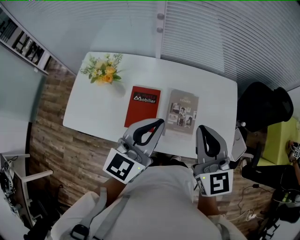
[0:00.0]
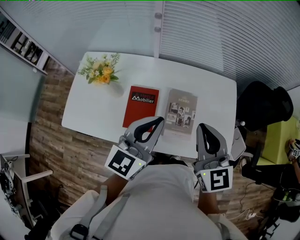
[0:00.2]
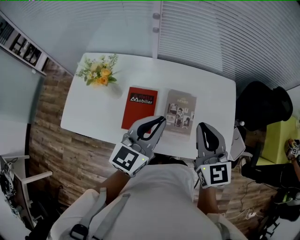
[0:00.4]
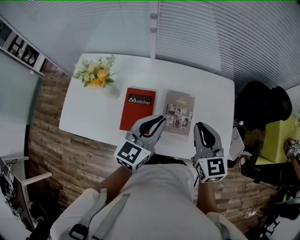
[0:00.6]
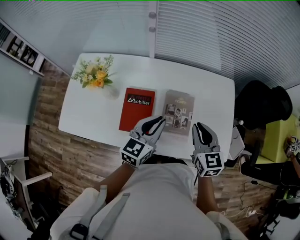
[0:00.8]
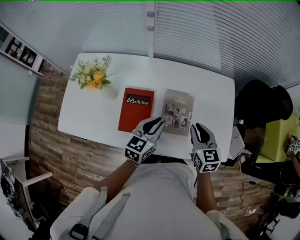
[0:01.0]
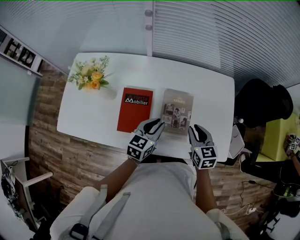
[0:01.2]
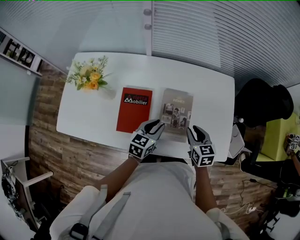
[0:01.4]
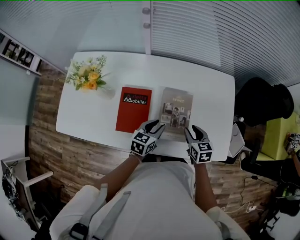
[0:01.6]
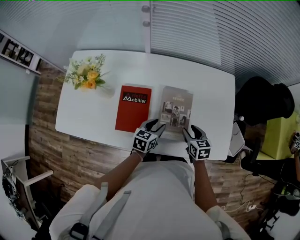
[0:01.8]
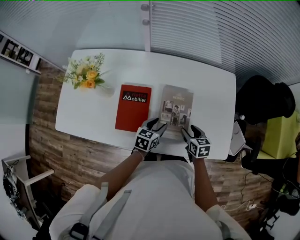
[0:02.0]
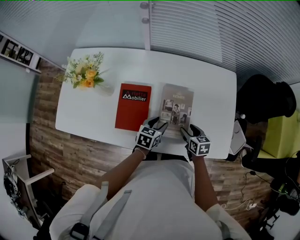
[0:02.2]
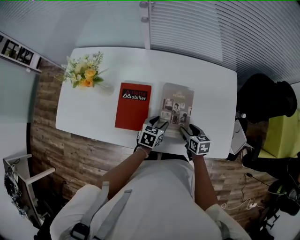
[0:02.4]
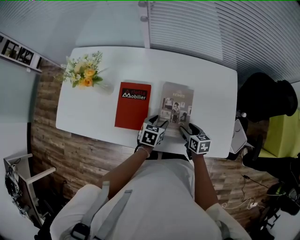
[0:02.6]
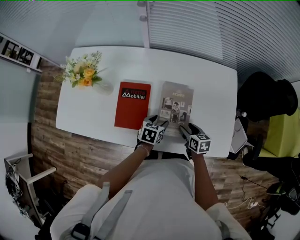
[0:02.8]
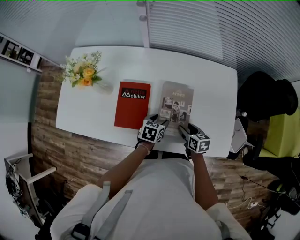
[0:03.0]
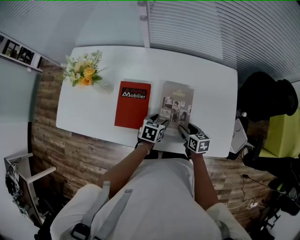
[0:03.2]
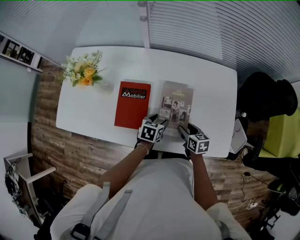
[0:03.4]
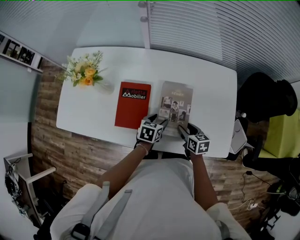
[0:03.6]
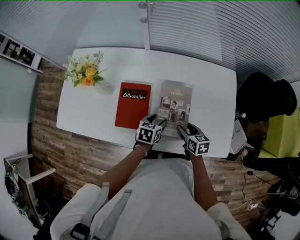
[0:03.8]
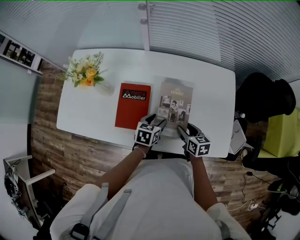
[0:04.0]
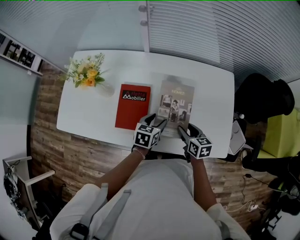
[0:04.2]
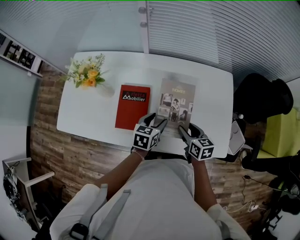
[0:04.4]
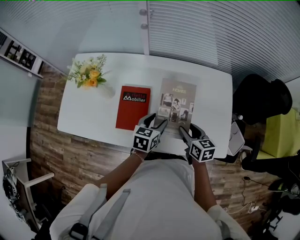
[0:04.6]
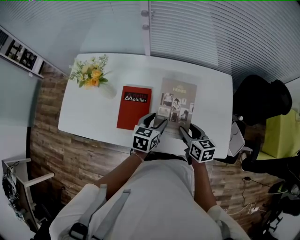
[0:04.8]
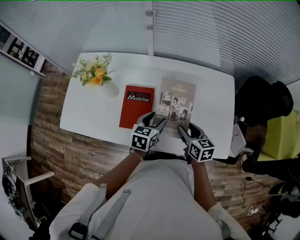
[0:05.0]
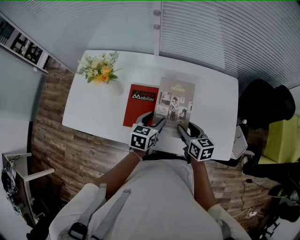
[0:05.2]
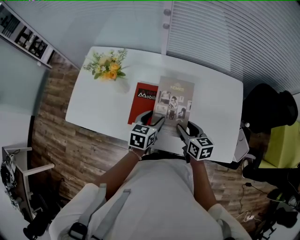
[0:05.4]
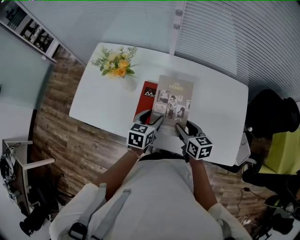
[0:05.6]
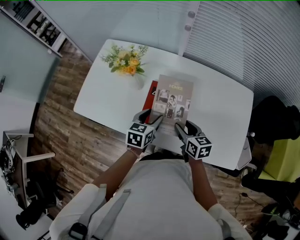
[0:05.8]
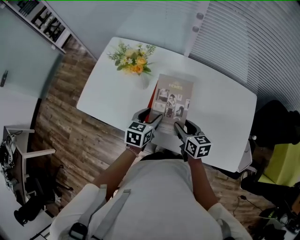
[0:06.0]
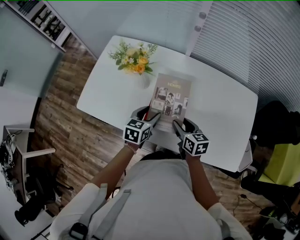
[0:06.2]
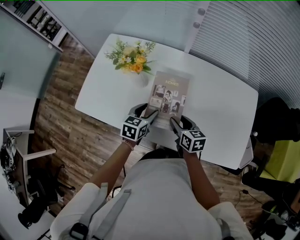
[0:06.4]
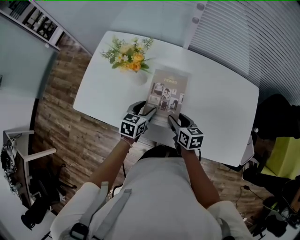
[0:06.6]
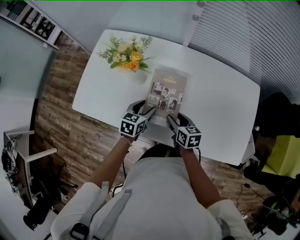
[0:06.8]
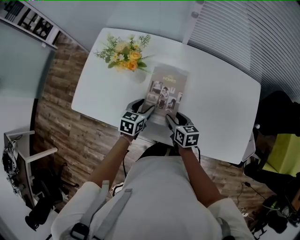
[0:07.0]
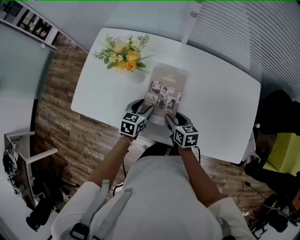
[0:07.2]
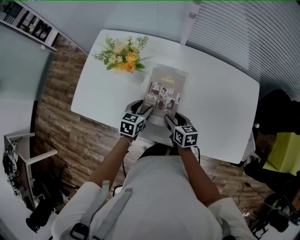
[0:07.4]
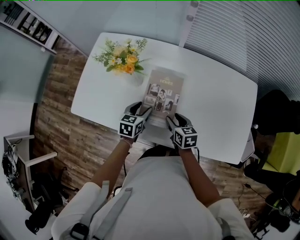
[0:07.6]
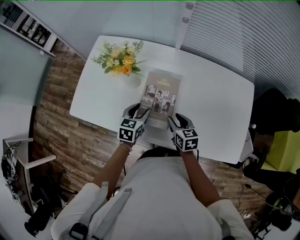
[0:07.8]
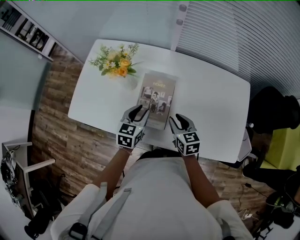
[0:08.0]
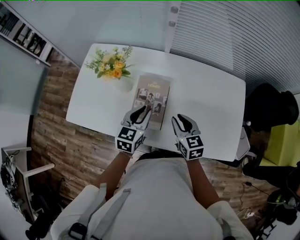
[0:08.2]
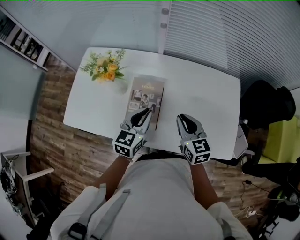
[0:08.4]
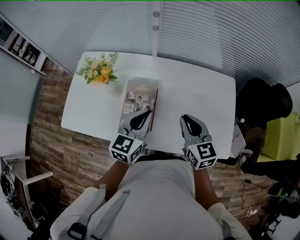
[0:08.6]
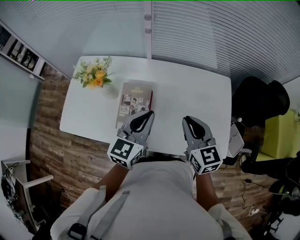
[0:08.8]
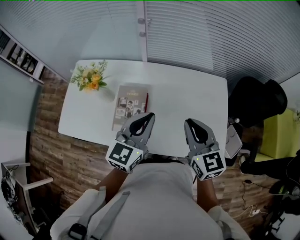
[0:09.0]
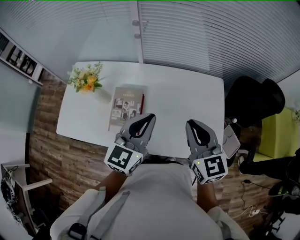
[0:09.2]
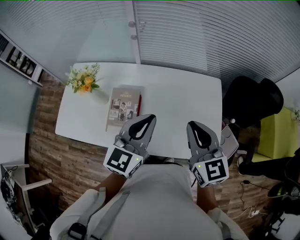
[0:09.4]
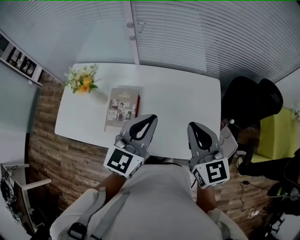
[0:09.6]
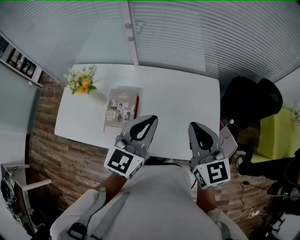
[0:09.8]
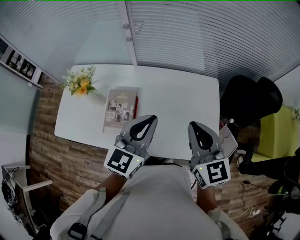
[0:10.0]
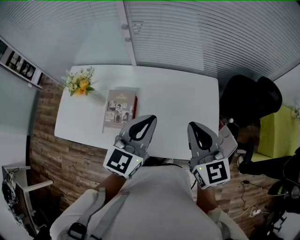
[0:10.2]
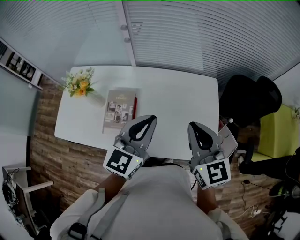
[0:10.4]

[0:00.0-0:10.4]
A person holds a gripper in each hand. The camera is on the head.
0:00.0 to 0:01.4: The two grippers go about 25 cm downward. The right gripper changes its angle by roughly 30 degrees, and opens up. Meanwhile the left gripper changes its angle by approximately 30 degrees, and opens its fingers.
0:01.4 to 0:03.0: Both grippers move downward, roughly 10 cm. The left gripper turns by some 20 degrees, and opens; the right gripper rotates approximately 20 degrees, and opens its fingers.
0:03.0 to 0:04.4: The two grippers go some 10 cm upward.
0:04.4 to 0:06.0: The grippers both shift to the left by approximately 20 cm.
0:06.0 to 0:07.4: Both grippers move downward, roughly 10 cm.
0:07.4 to 0:09.0: Both grippers move upward and to the right, roughly 35 cm. The right gripper turns by roughly 40 degrees, and closes up, while the left gripper tilts its fingers approximately 30 degrees upward, and closes.
0:09.0 to 0:10.4: The grippers both shift to the right and upward by approximately 10 cm.

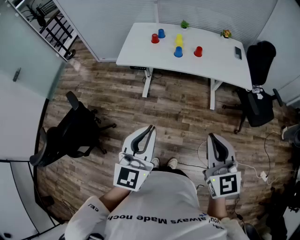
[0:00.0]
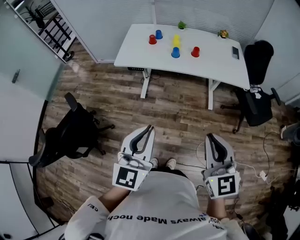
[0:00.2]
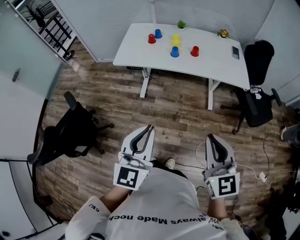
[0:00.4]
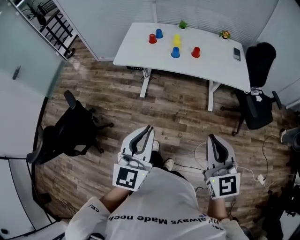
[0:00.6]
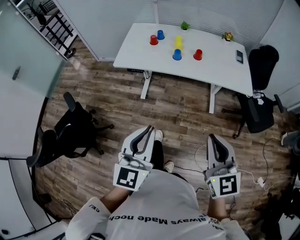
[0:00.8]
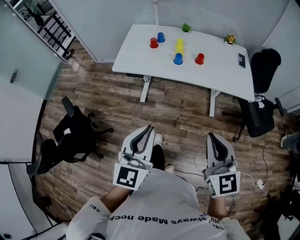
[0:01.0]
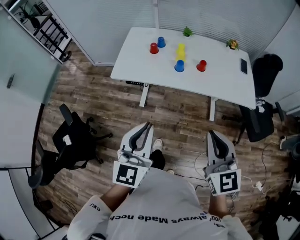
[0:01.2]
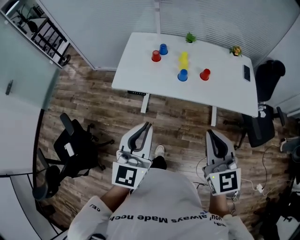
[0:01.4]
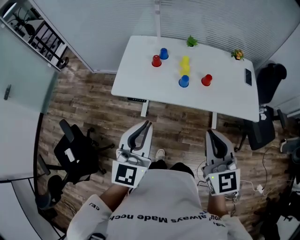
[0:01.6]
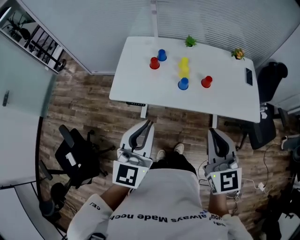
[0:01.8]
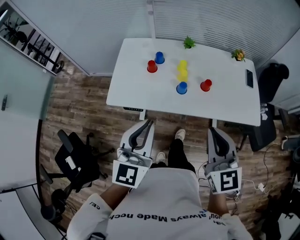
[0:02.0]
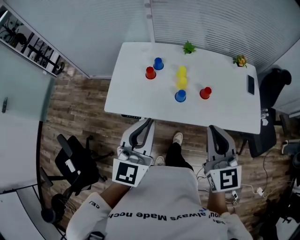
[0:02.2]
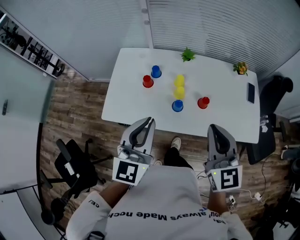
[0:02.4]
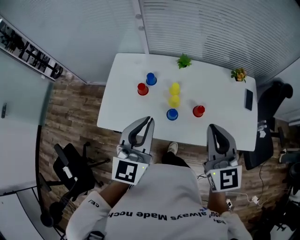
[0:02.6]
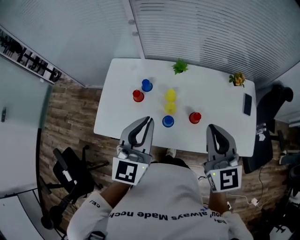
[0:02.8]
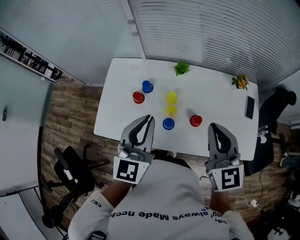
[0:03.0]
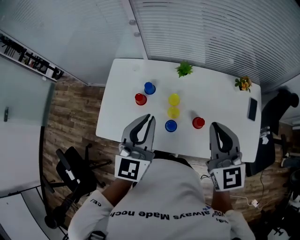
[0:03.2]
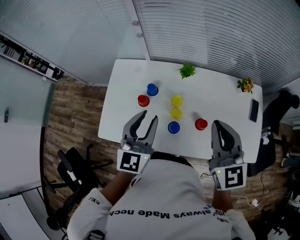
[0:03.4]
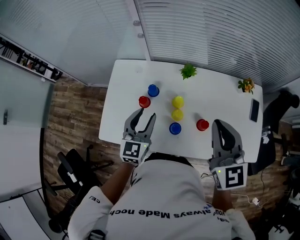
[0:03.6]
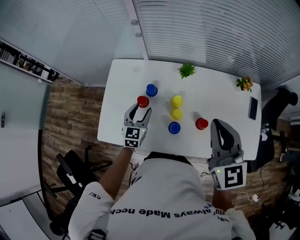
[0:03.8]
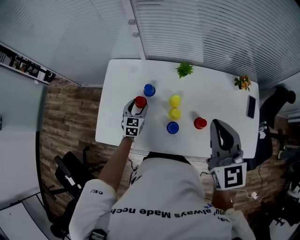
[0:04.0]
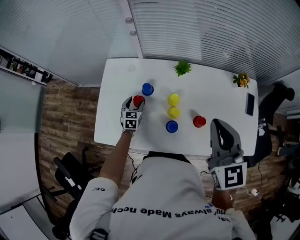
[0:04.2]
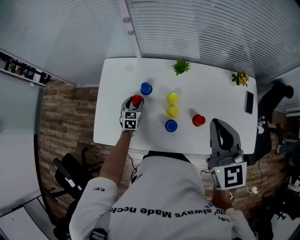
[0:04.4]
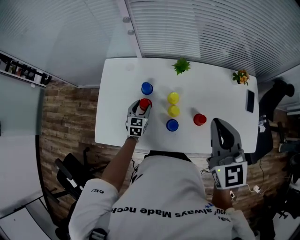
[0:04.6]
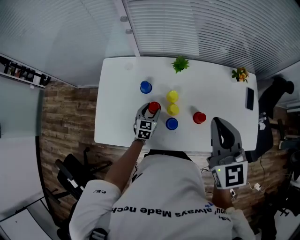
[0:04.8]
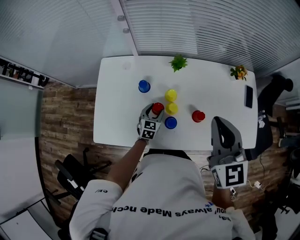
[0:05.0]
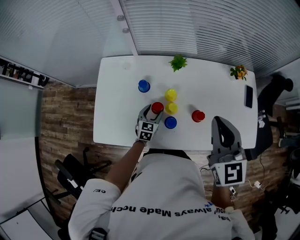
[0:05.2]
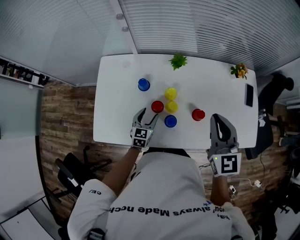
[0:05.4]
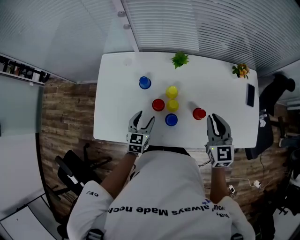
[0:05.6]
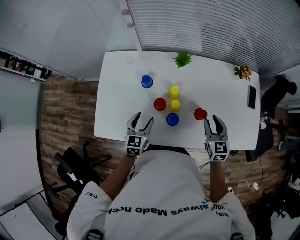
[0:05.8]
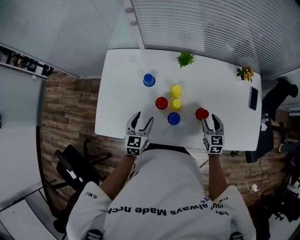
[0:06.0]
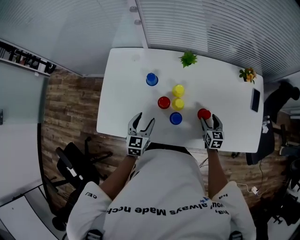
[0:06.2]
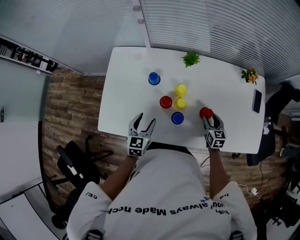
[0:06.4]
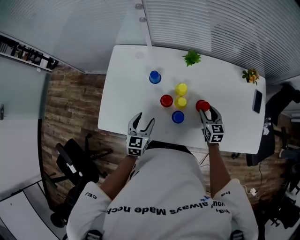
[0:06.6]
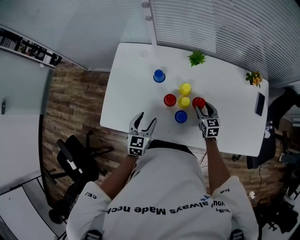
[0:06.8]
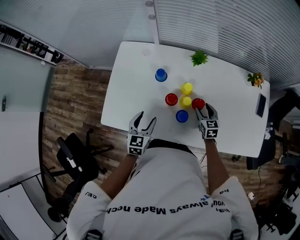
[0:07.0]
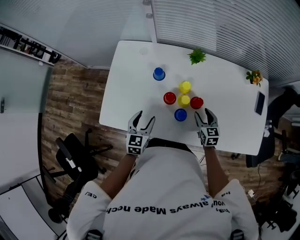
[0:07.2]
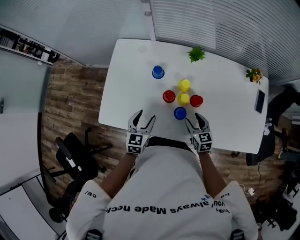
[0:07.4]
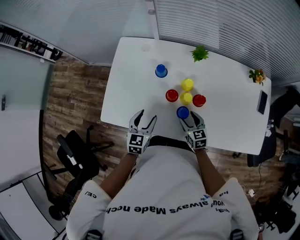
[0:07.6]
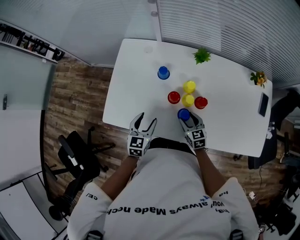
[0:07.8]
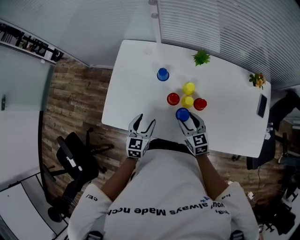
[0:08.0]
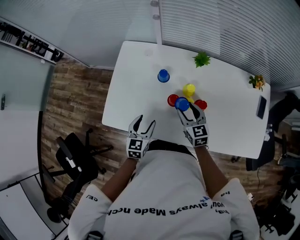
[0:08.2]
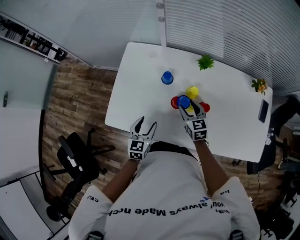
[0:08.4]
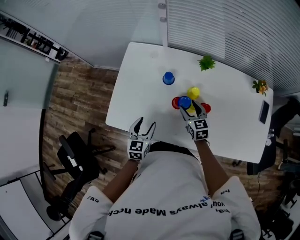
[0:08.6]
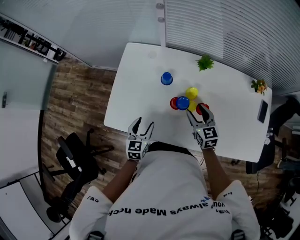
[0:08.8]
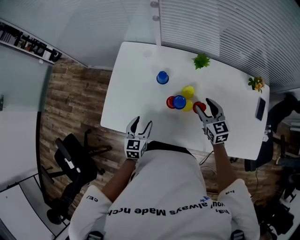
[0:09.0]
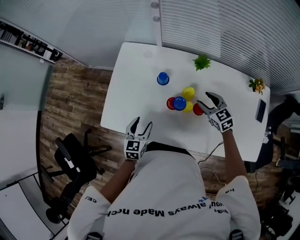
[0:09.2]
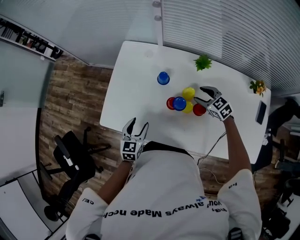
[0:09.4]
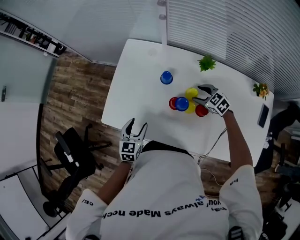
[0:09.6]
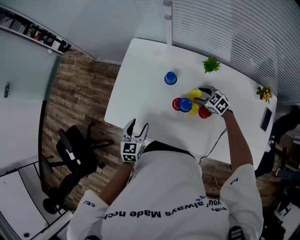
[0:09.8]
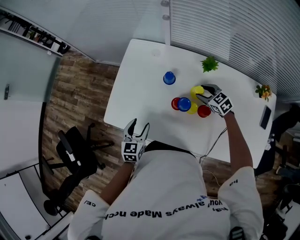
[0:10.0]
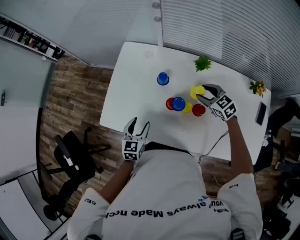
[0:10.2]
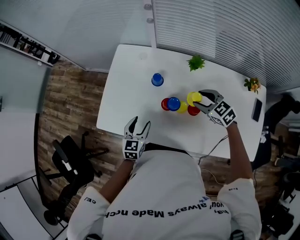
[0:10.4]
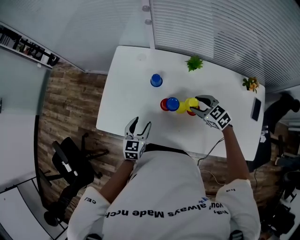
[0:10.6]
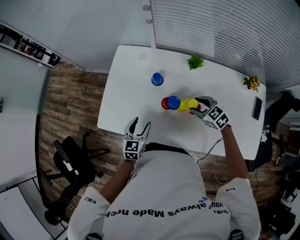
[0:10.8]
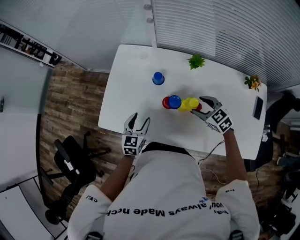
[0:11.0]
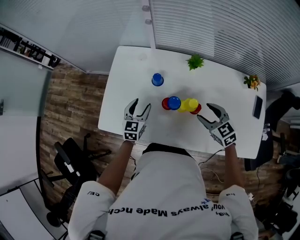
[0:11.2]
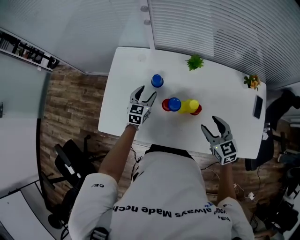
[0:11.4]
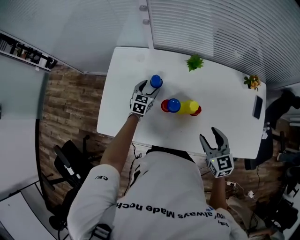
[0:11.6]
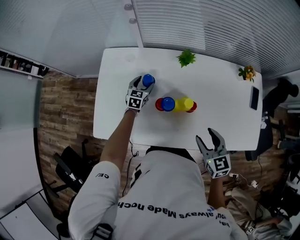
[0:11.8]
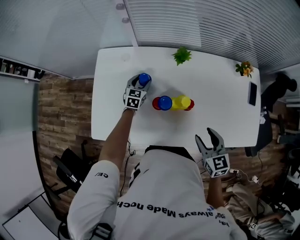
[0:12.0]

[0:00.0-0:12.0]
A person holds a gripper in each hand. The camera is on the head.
0:00.0 to 0:01.6: Both grippers move forward, about 30 cm.
0:01.6 to 0:03.0: The two grippers go approximately 35 cm forward.
0:03.0 to 0:04.4: The left gripper heads downward and forward, covering roughly 40 cm, tips its fingers downward by approximately 30 degrees, and opens, while the right gripper shifts by roughly 5 cm.
0:04.4 to 0:06.0: The left gripper shifts about 15 cm backward, upward and to the right, while the right gripper moves downward, some 30 cm, changes its angle by roughly 20 degrees, and opens its fingers.
0:06.0 to 0:07.6: The right gripper goes approximately 15 cm to the left, and swivels approximately 20 degrees.
0:07.6 to 0:09.0: The right gripper moves up and down over approximately 15 cm, changing direction 2 times.
0:09.0 to 0:10.4: The right gripper moves roughly 10 cm downward and comes back, and turns by approximately 30 degrees.
0:10.4 to 0:12.0: The right gripper goes downward and returns, approximately 5 cm each way, and swivels some 40 degrees. Meanwhile the left gripper changes place by approximately 25 cm.

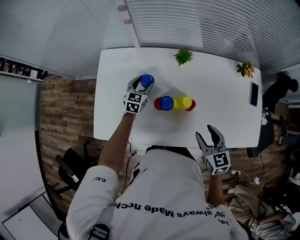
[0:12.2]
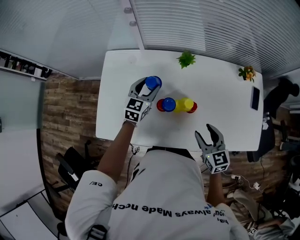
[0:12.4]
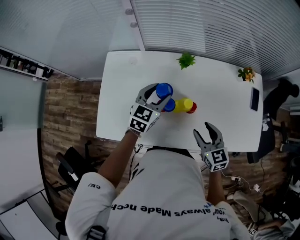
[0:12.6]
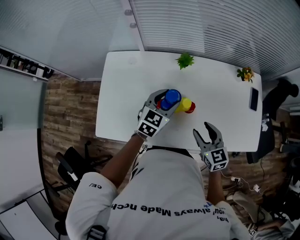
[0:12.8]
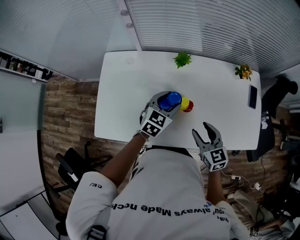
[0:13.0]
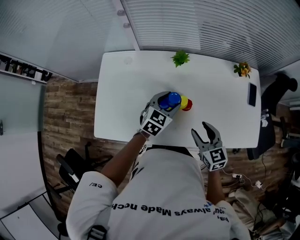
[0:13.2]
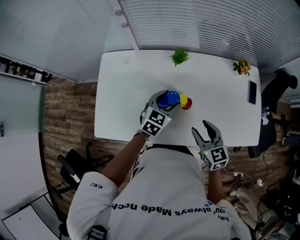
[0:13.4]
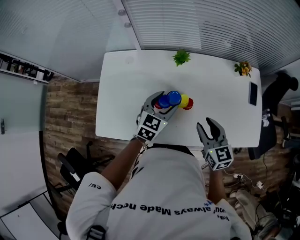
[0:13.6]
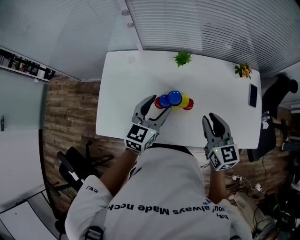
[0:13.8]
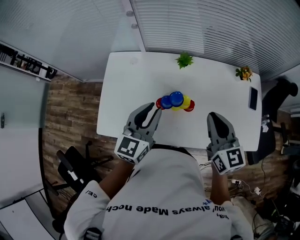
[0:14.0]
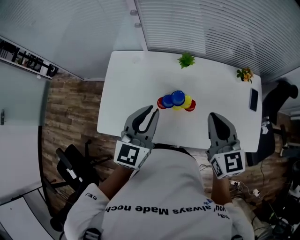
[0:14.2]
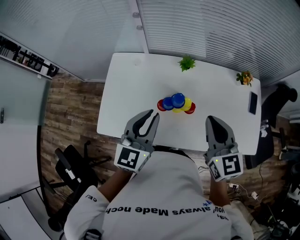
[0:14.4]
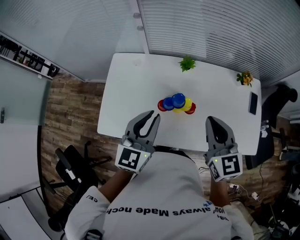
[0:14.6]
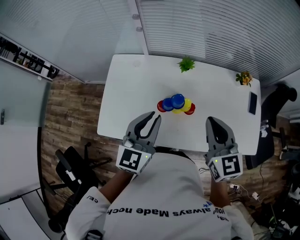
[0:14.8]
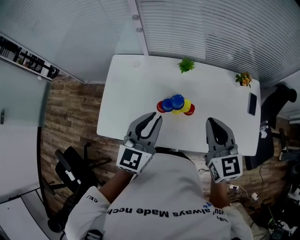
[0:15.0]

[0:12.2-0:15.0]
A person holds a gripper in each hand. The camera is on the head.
0:12.2 to 0:13.6: The left gripper moves to the right, upward and backward, roughly 25 cm.
0:13.6 to 0:15.0: The left gripper shifts roughly 20 cm upward, backward and to the left, rotates roughly 20 degrees, and closes up, while the right gripper travels upward by some 15 cm, and closes.
